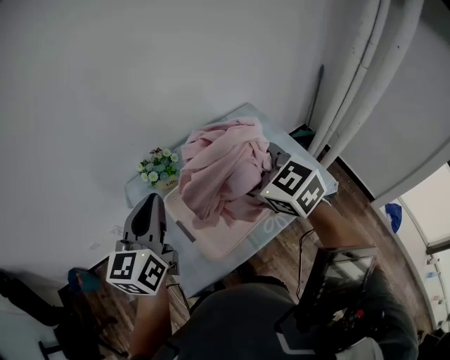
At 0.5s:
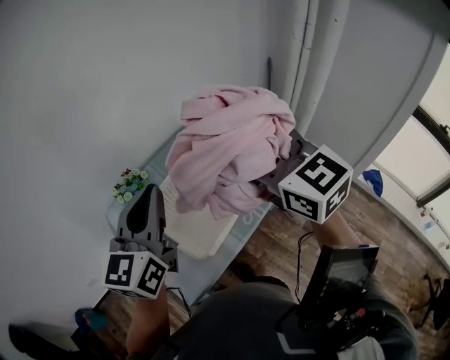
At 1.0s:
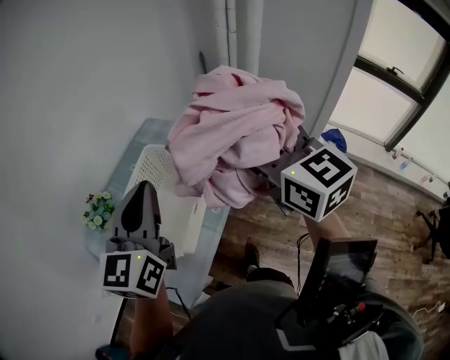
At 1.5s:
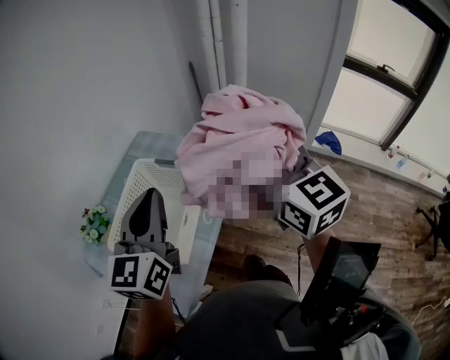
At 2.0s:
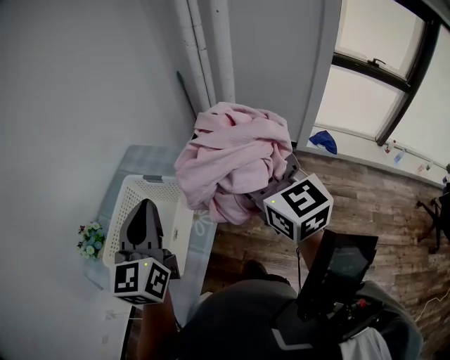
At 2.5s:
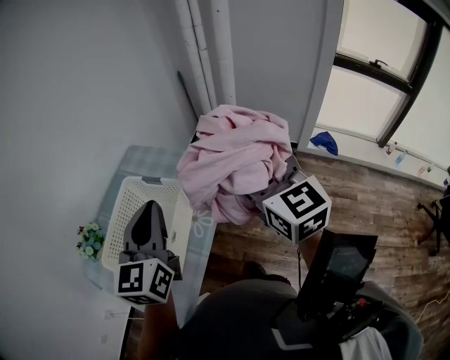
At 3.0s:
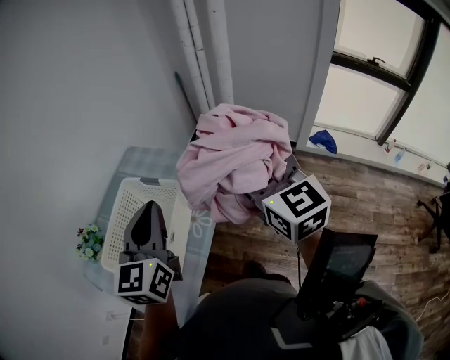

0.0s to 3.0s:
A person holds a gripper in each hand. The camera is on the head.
0.0s to 1.5s: The right gripper shifts by approximately 30 cm, and swivels approximately 60 degrees. The left gripper changes place by some 25 cm, and swivels approximately 40 degrees.
1.5s to 3.0s: There are only small adjustments of the grippers.

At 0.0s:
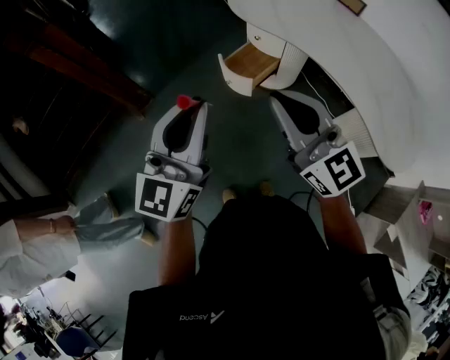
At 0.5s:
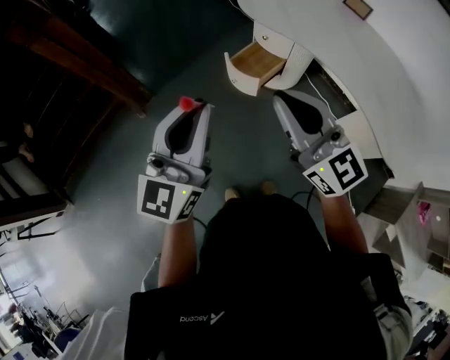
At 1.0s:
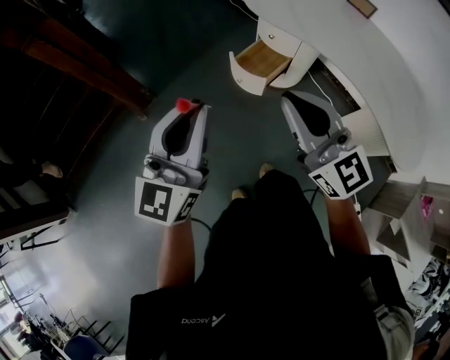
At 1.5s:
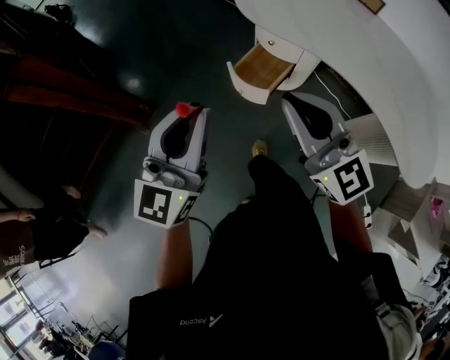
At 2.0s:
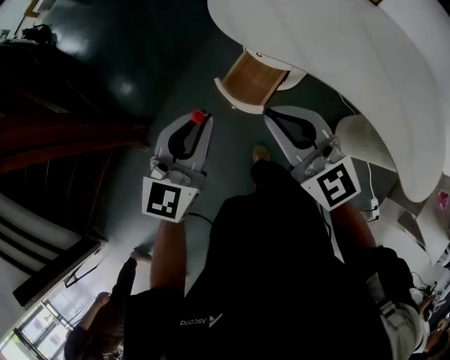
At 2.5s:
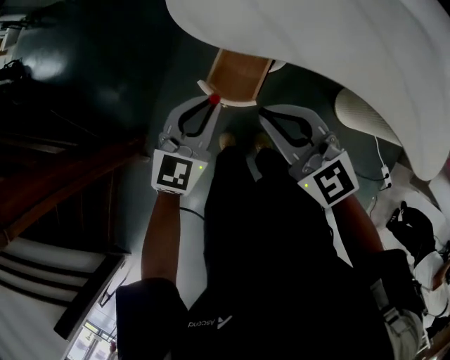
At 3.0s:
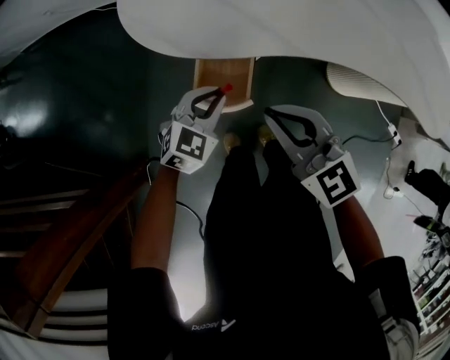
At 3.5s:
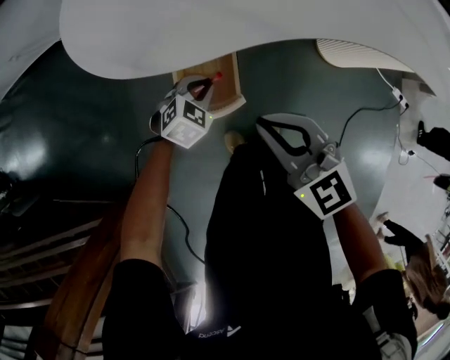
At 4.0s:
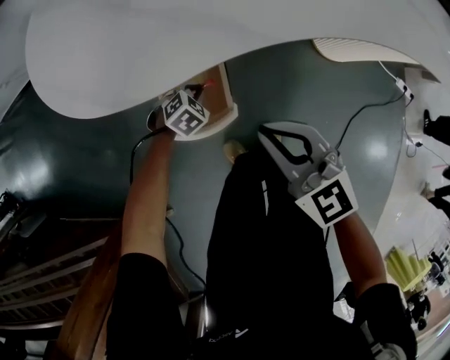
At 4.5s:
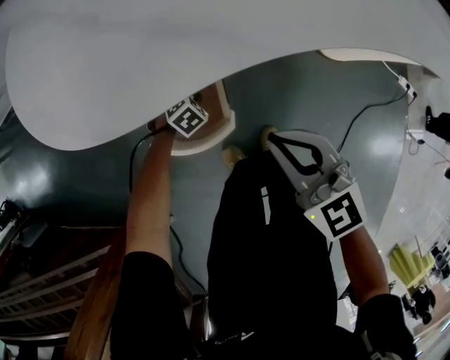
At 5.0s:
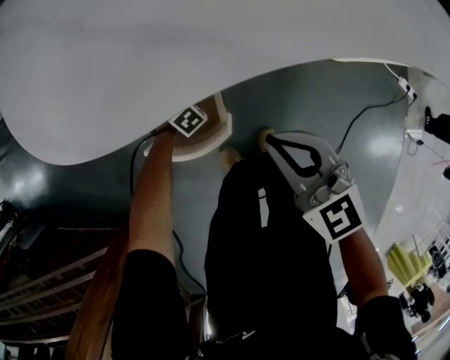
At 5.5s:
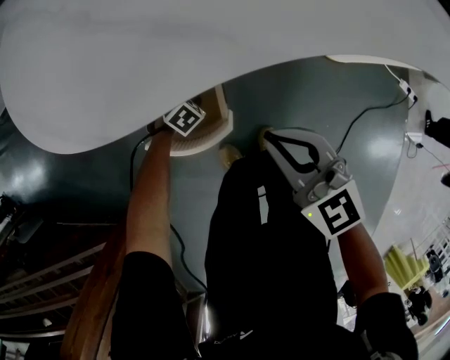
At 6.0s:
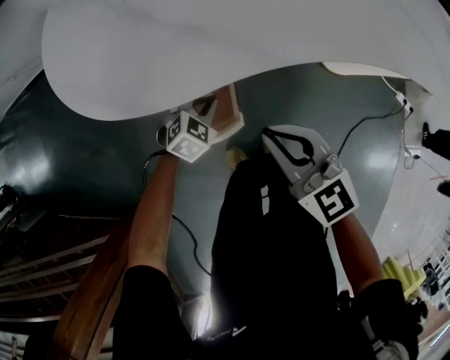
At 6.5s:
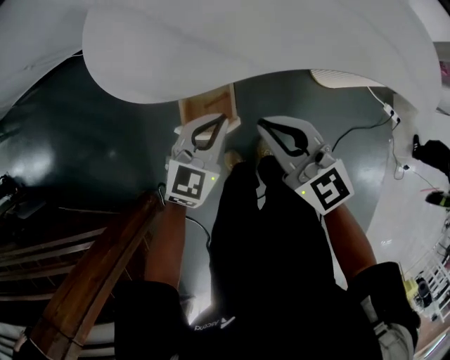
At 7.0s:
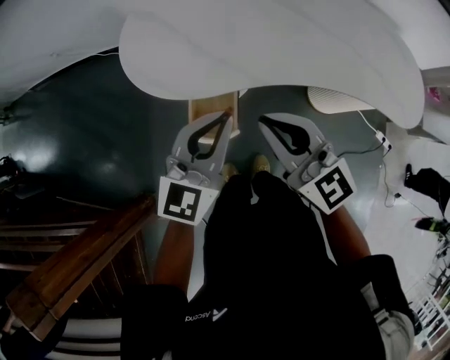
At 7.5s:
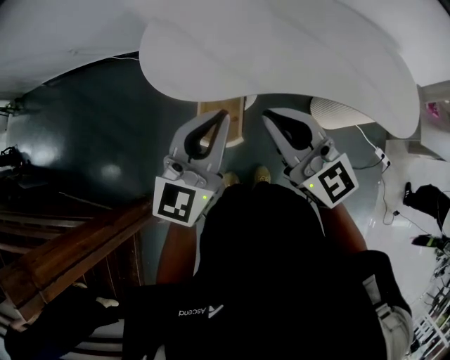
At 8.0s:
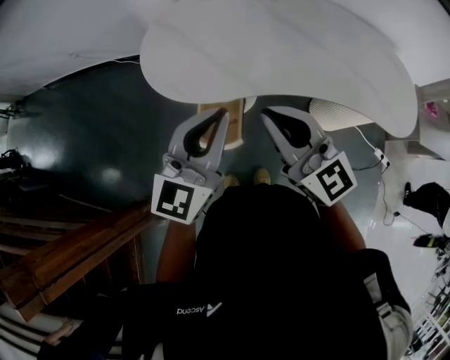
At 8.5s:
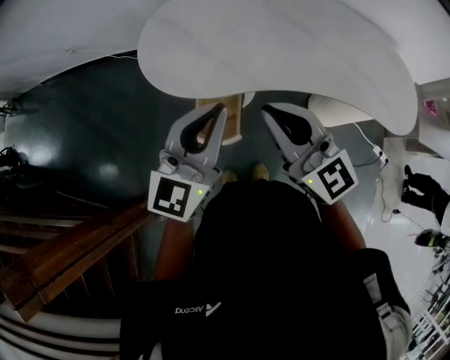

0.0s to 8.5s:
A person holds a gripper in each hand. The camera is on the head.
0.0s to 2.0s: The grippers both shift forward by some 30 cm. The left gripper swivels roughly 30 degrees.
2.0s to 4.0s: The right gripper is displaced downward by approximately 30 cm, and changes its angle by approximately 50 degrees; the left gripper moves downward, about 50 cm, and points its fingers roughly 60 degrees further downward.
4.0s to 6.5s: The right gripper goes about 15 cm upward, while the left gripper goes roughly 35 cm upward, and tips its fingers upward by approximately 40 degrees.
6.5s to 8.5s: Both grippers travel together upward, roughly 25 cm. The left gripper changes its angle by about 30 degrees.

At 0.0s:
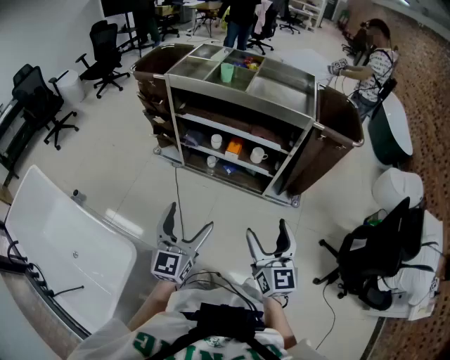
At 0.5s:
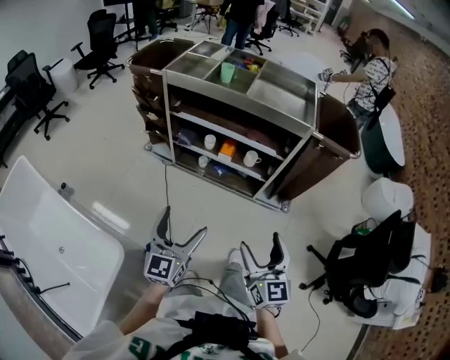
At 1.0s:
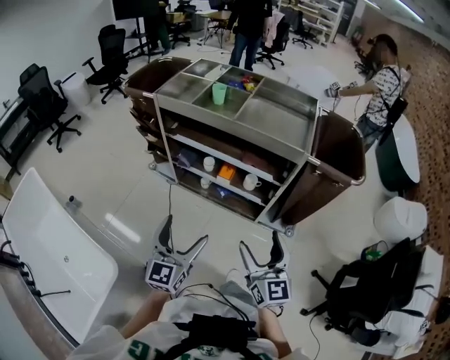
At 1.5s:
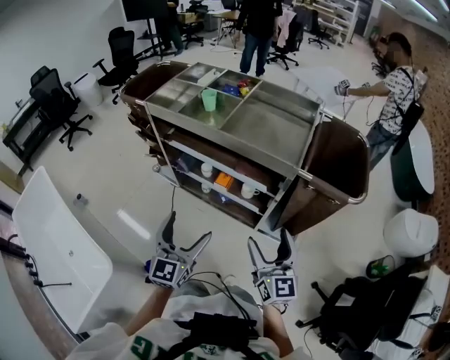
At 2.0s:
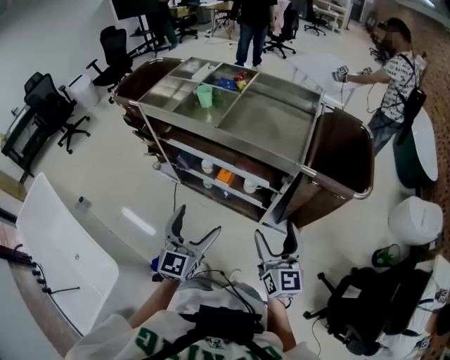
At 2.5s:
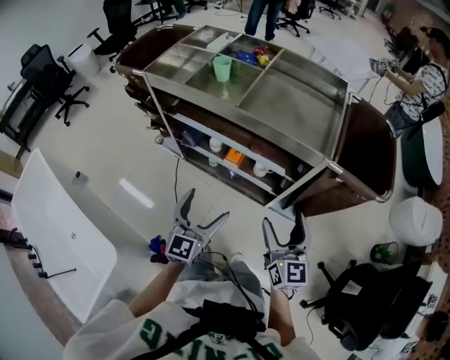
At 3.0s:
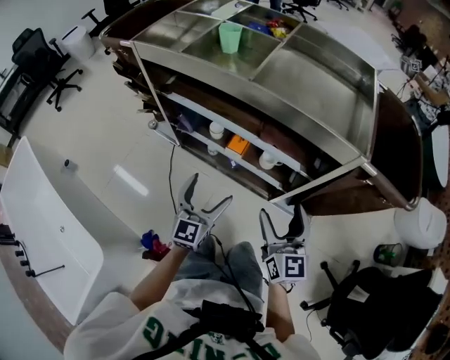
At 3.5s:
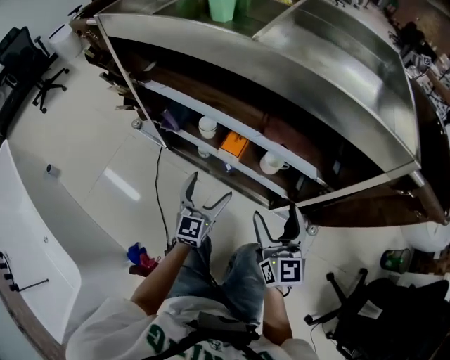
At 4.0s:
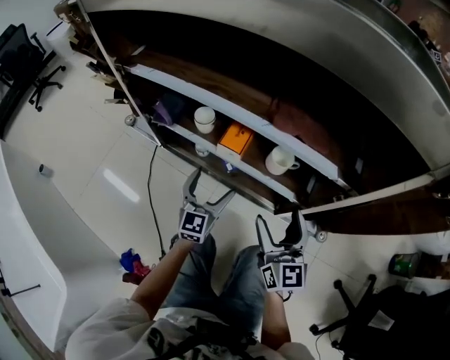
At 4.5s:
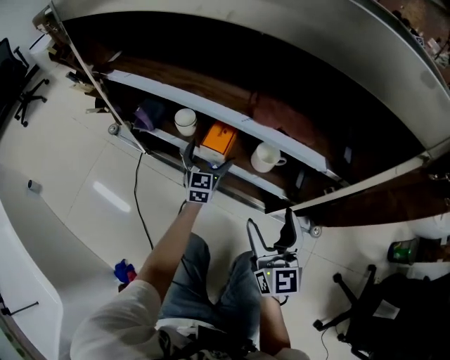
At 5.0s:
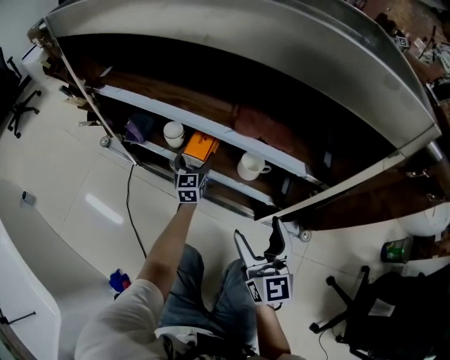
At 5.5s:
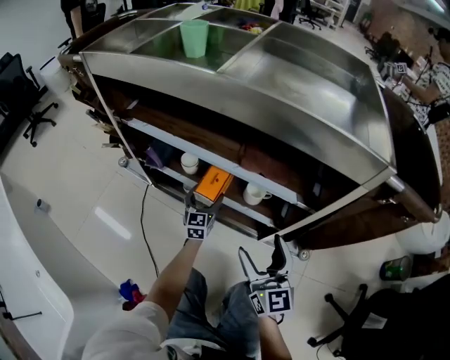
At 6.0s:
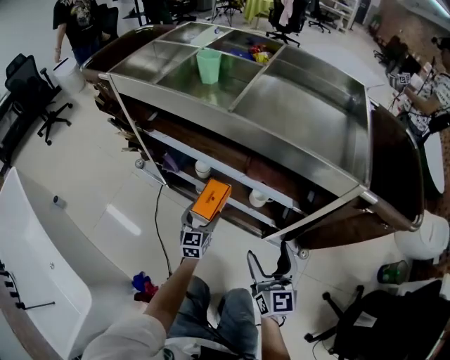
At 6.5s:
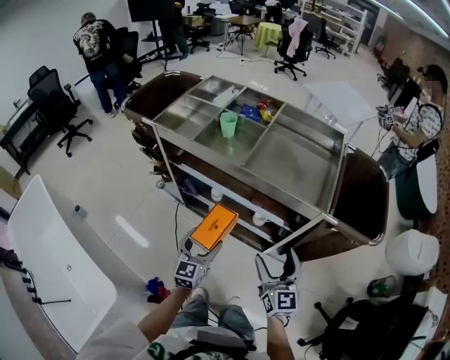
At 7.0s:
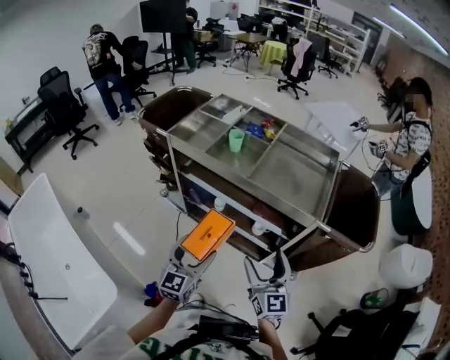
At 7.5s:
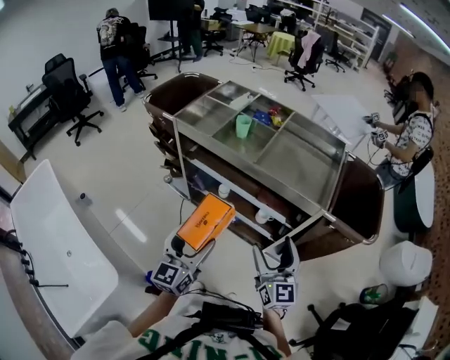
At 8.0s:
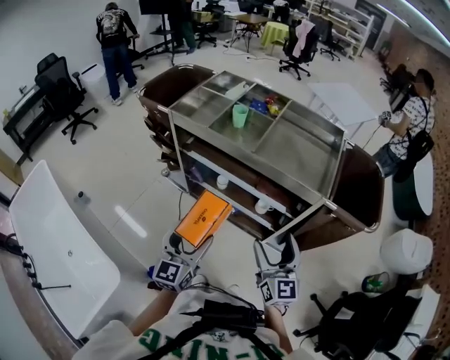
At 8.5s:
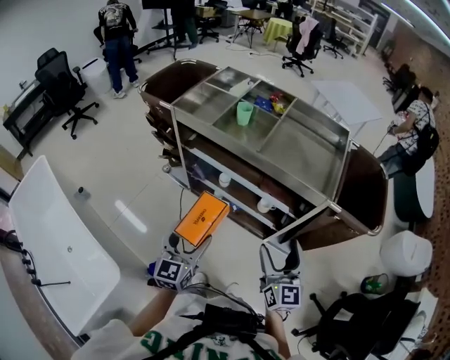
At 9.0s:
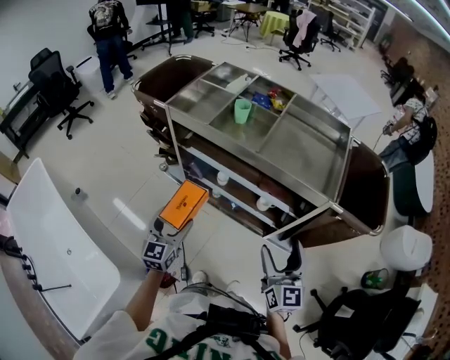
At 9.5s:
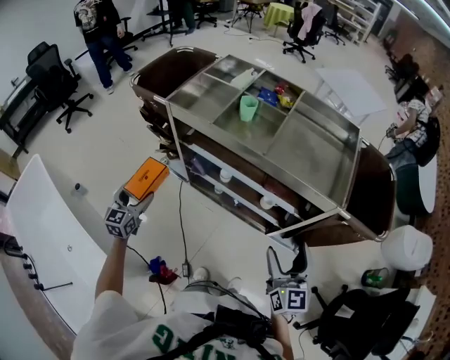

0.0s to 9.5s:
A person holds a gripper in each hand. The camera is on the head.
0.0s to 2.0s: Both grippers travel together forward and to the right, about 30 cm.
2.0s to 4.0s: The two grippers go some 50 cm downward and forward.
4.0s to 5.5s: The right gripper shifts about 10 cm upward, while the left gripper heads forward, covering about 10 cm.
5.5s to 7.5s: The right gripper shifts approximately 35 cm upward; the left gripper goes roughly 60 cm upward and backward.
7.5s to 9.5s: The left gripper heads to the left, forward and downward, covering approximately 35 cm, and turns by about 20 degrees.

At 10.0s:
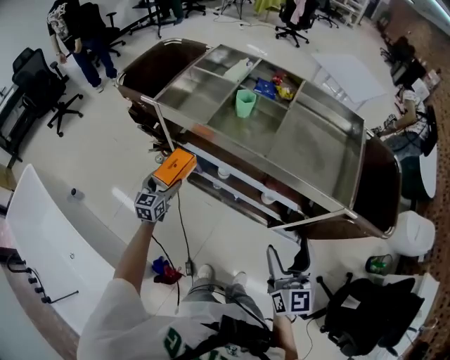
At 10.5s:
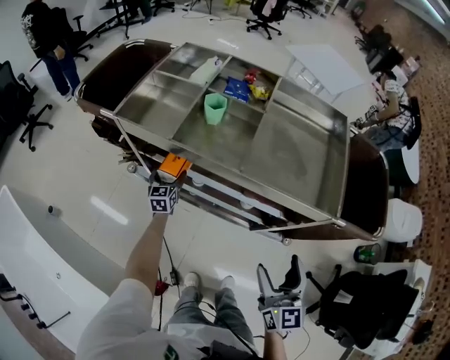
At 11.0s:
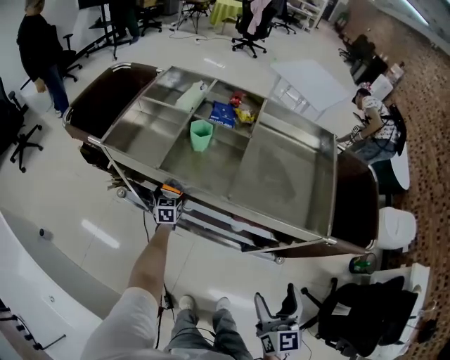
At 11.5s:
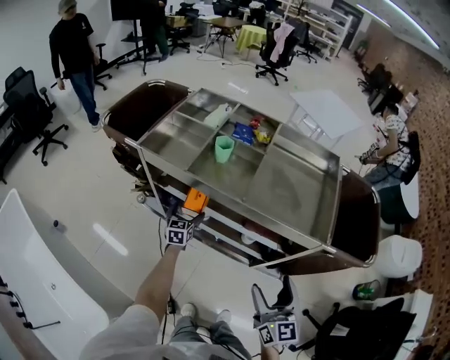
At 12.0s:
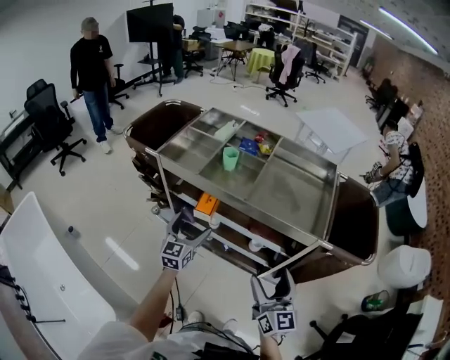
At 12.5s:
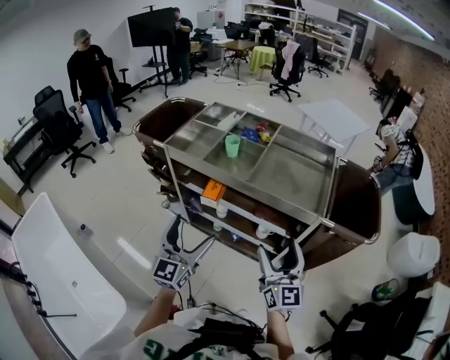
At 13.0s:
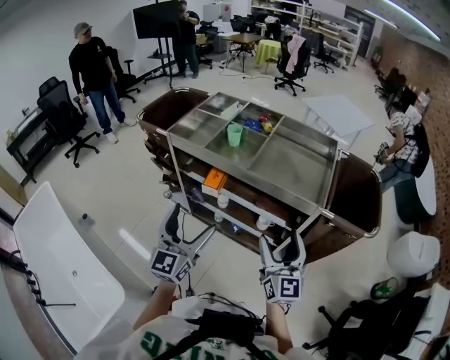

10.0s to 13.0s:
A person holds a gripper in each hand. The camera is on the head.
10.0s to 11.5s: The left gripper moves to the right and forward, roughly 15 cm.
11.5s to 13.0s: The left gripper goes roughly 50 cm upward and backward, and points its fingers some 30 degrees further upward. Meanwhile the right gripper heads upward, covering approximately 5 cm.

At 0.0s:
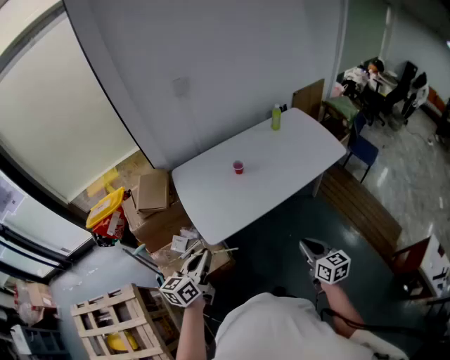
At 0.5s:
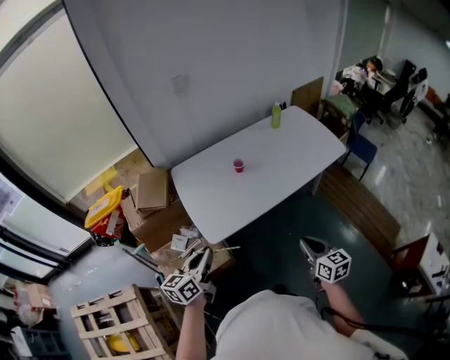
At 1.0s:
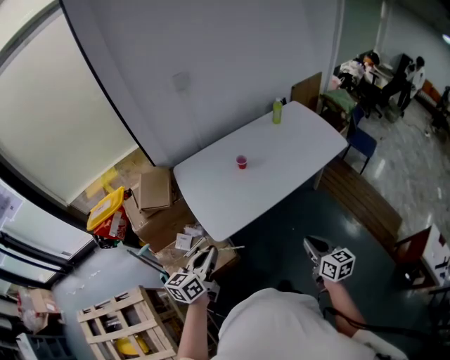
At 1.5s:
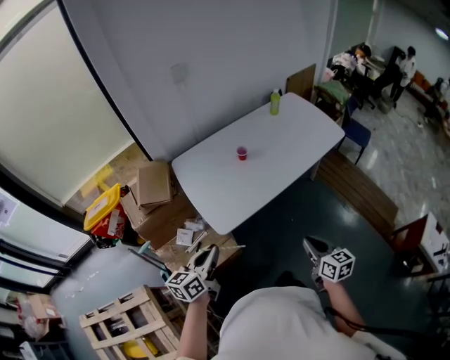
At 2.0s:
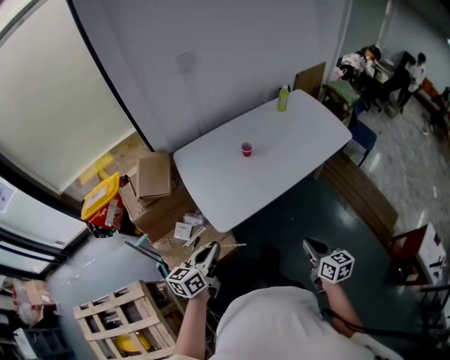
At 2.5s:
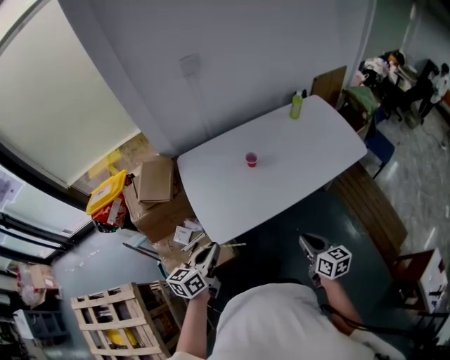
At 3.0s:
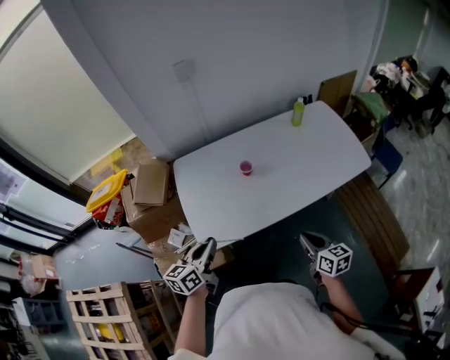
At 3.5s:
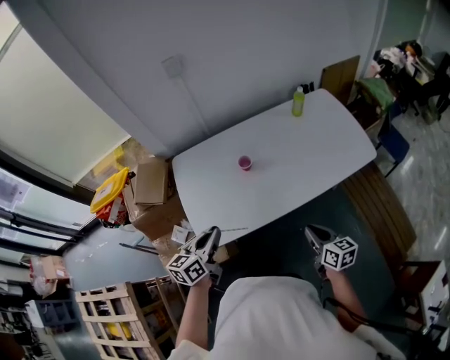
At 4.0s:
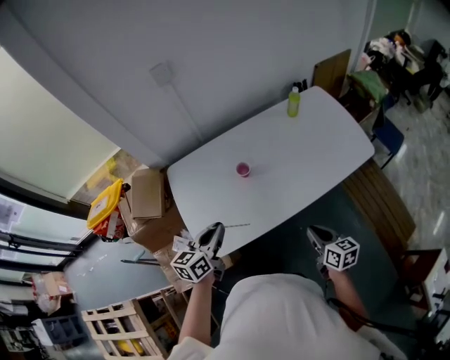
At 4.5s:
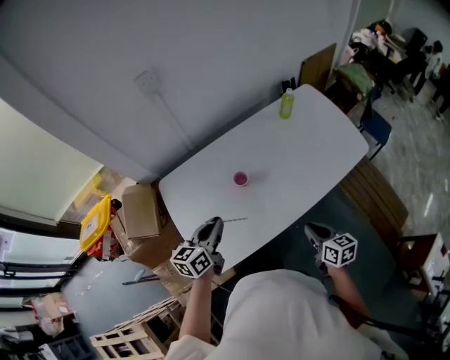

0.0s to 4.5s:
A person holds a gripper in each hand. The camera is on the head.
0.0s to 2.0s: The left gripper shifts some 5 cm downward, while the right gripper moves to the left, some 5 cm.
2.0s to 4.5s: Both grippers travel together forward, approximately 30 cm.
